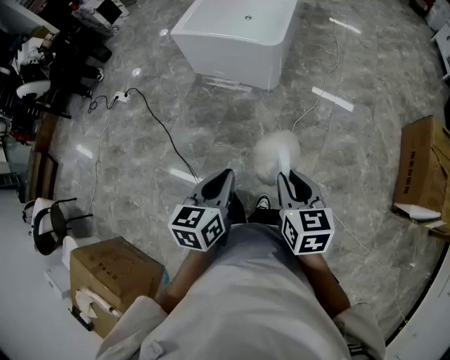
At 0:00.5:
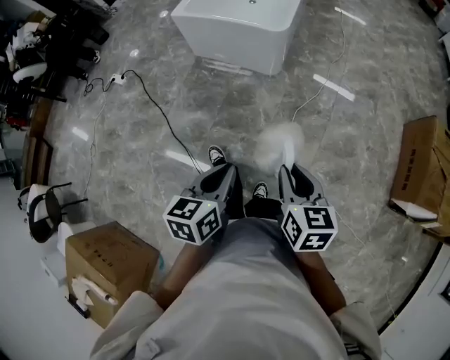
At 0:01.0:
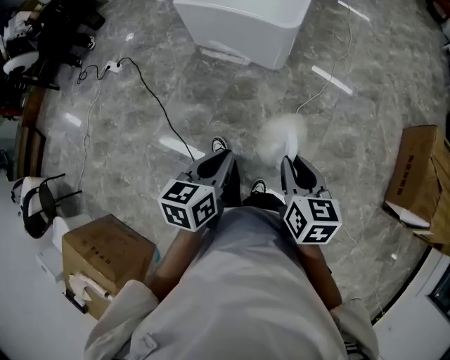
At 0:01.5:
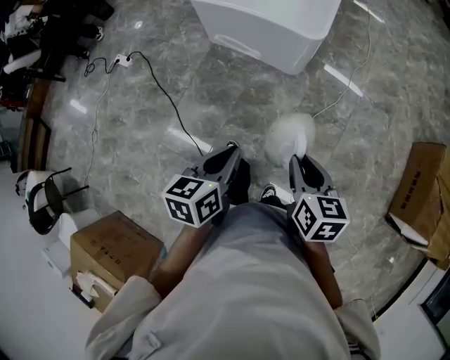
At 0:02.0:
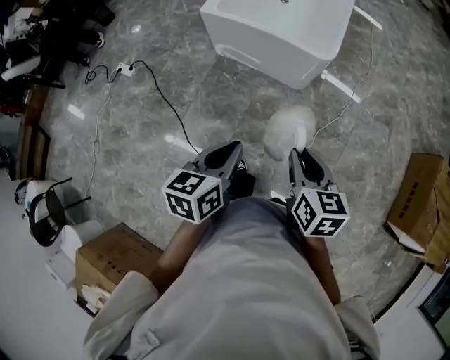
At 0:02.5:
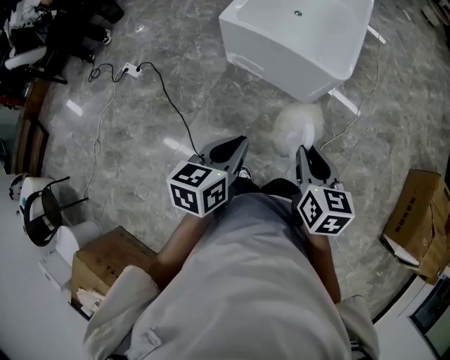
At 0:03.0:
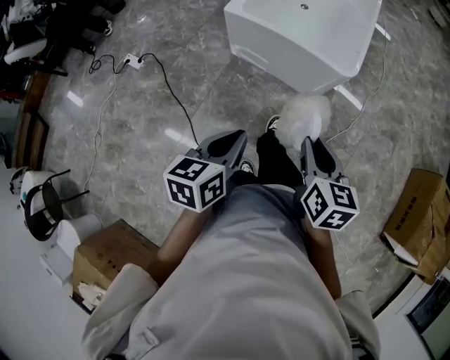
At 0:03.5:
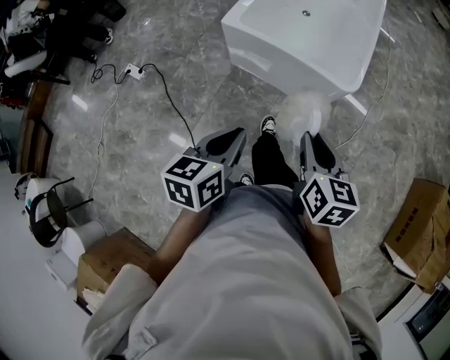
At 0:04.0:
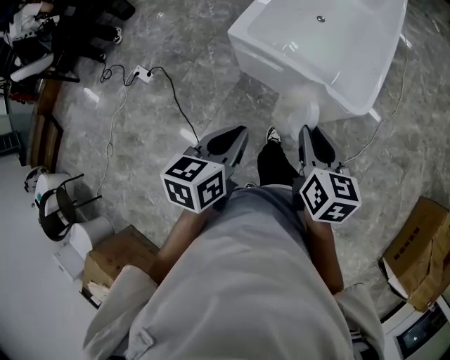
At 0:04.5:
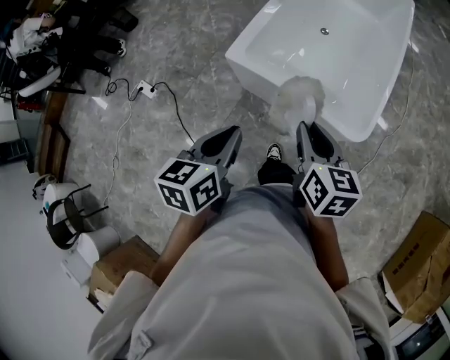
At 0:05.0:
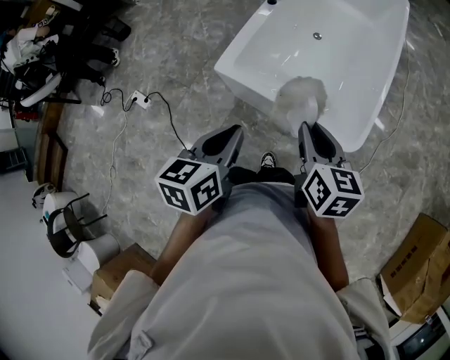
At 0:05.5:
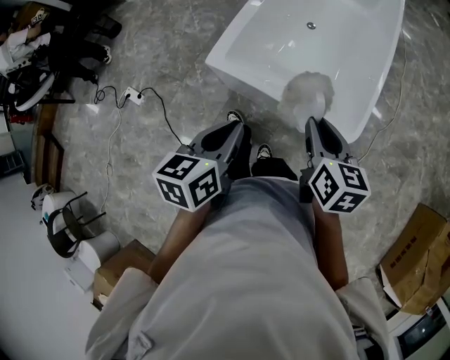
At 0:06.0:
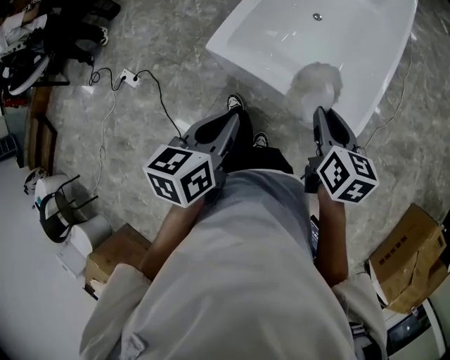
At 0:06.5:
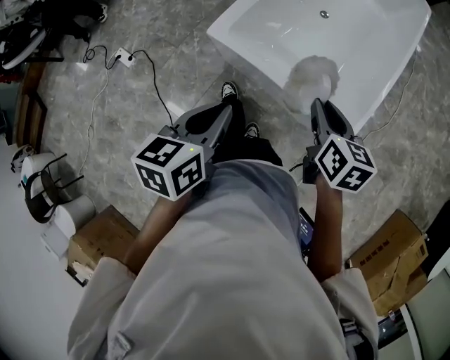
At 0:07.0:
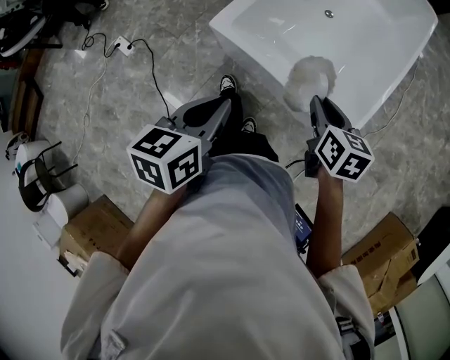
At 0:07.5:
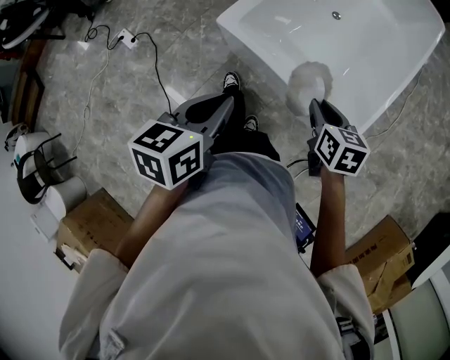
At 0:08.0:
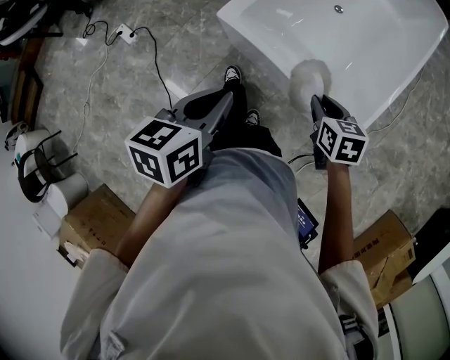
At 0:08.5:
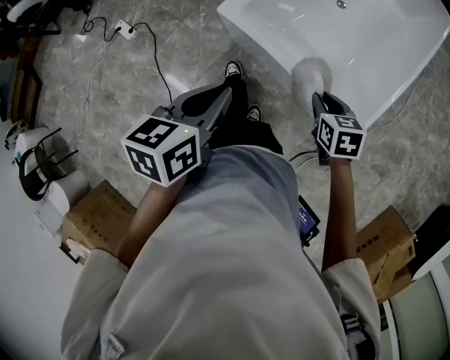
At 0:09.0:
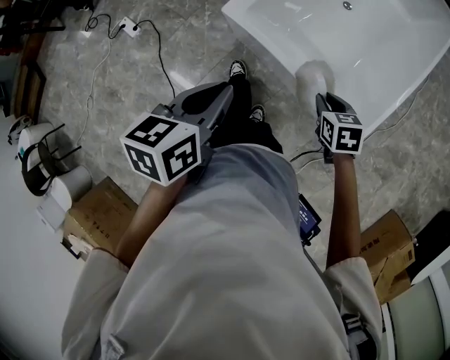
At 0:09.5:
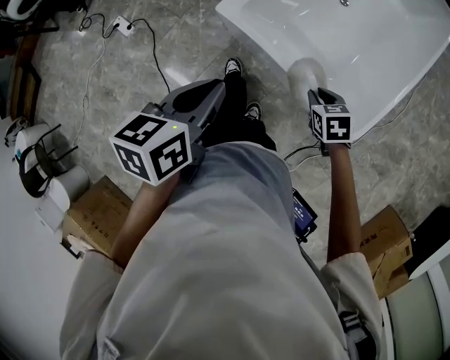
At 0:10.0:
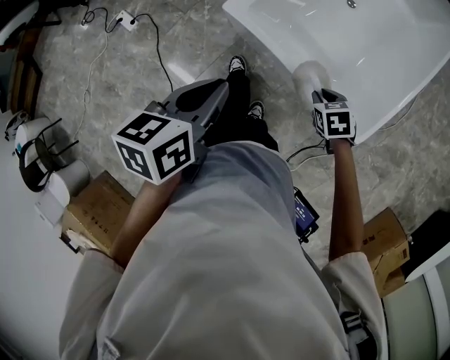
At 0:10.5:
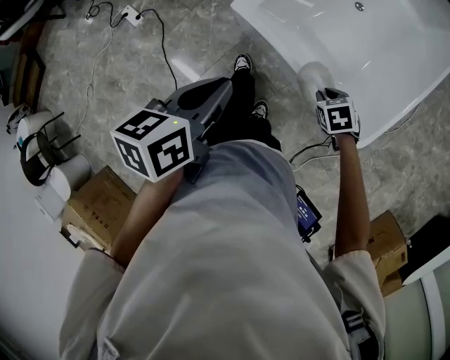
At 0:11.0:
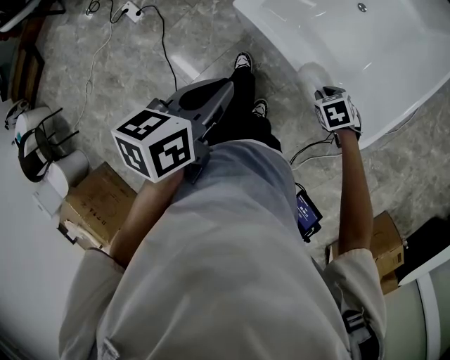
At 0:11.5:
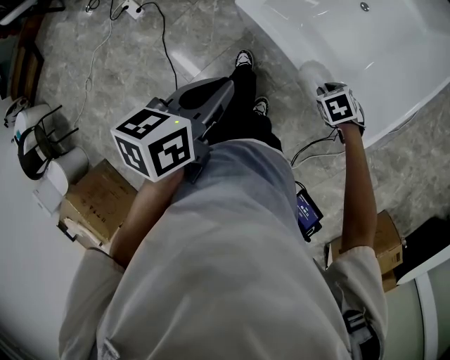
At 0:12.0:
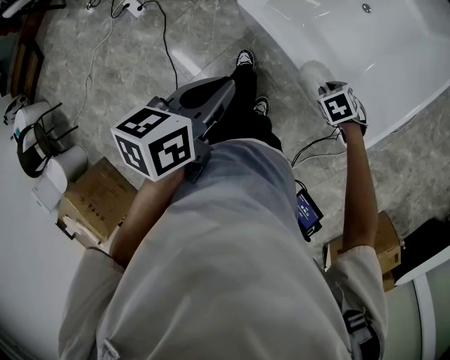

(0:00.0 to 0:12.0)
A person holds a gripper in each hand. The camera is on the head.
0:00.0 - 0:02.0: The grippers both shift forward and to the left by roughly 30 cm.
0:02.0 - 0:04.0: The right gripper goes roughly 30 cm forward, while the left gripper goes roughly 25 cm forward and to the left.
0:04.0 - 0:06.0: The two grippers go approximately 20 cm forward.
0:06.0 - 0:08.0: The right gripper moves downward, some 15 cm, and changes its angle by roughly 30 degrees.
0:08.0 - 0:10.0: The left gripper shifts by approximately 5 cm; the right gripper travels downward by some 10 cm, and swivels approximately 20 degrees.
0:10.0 - 0:12.0: The right gripper swivels roughly 20 degrees.

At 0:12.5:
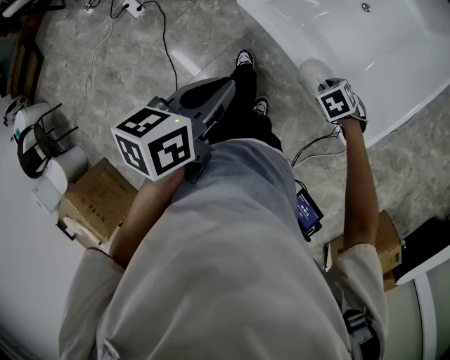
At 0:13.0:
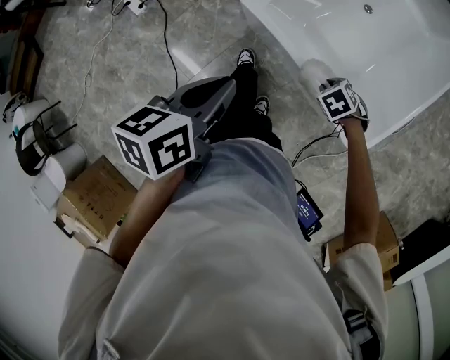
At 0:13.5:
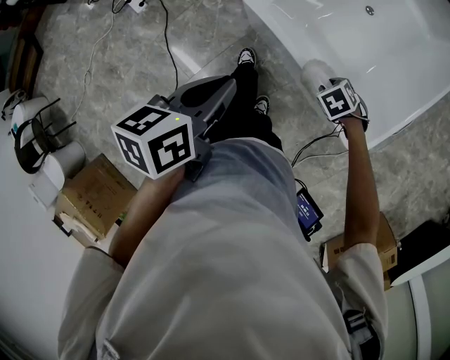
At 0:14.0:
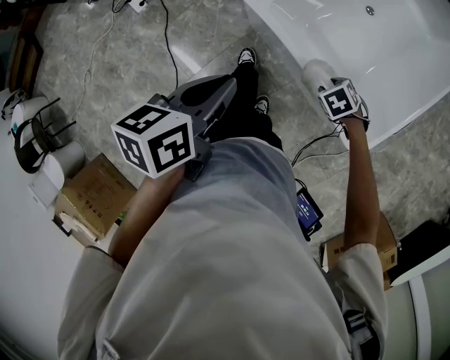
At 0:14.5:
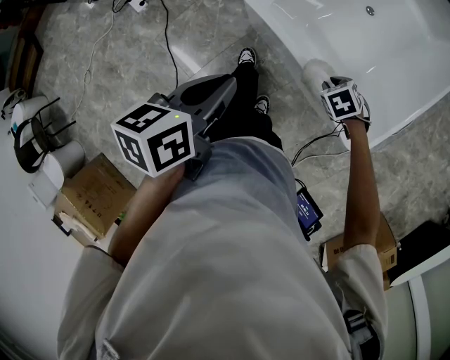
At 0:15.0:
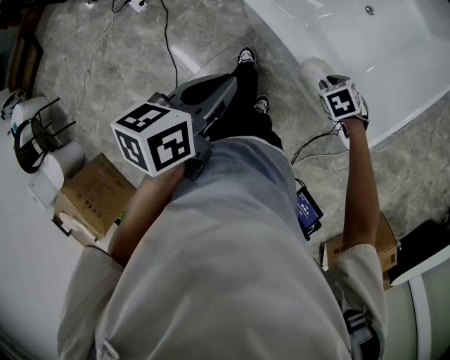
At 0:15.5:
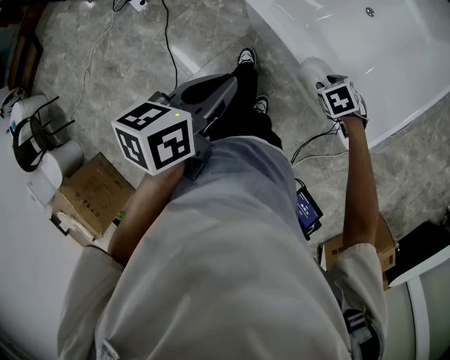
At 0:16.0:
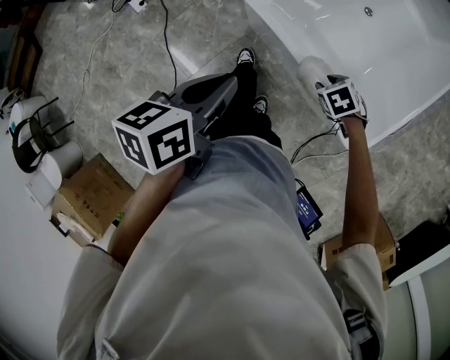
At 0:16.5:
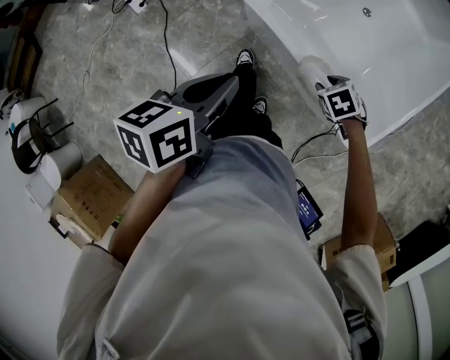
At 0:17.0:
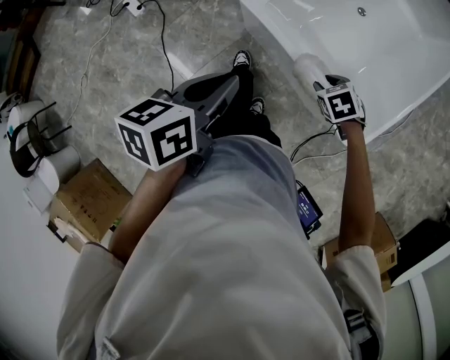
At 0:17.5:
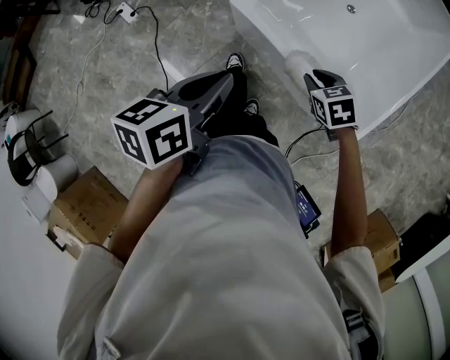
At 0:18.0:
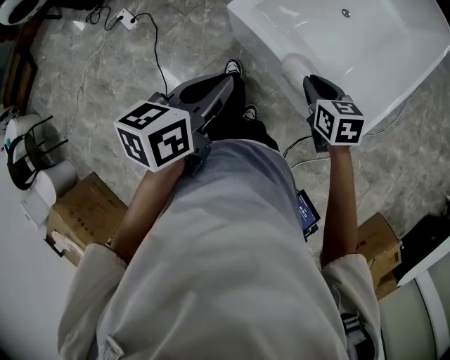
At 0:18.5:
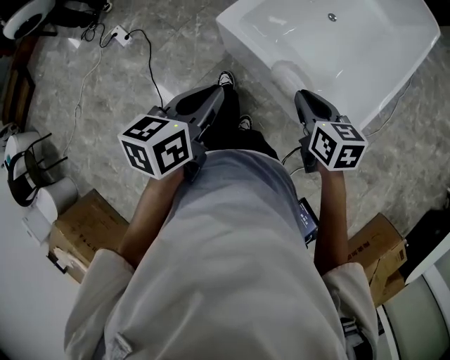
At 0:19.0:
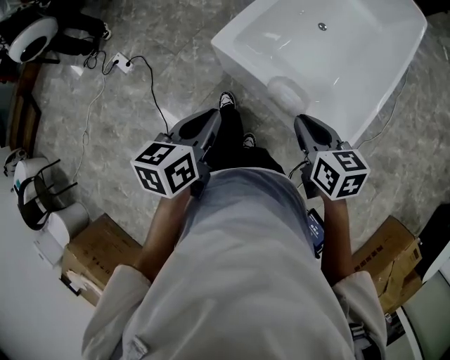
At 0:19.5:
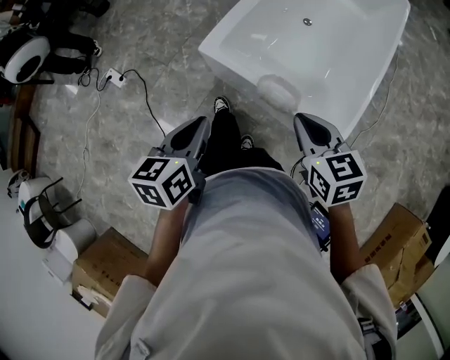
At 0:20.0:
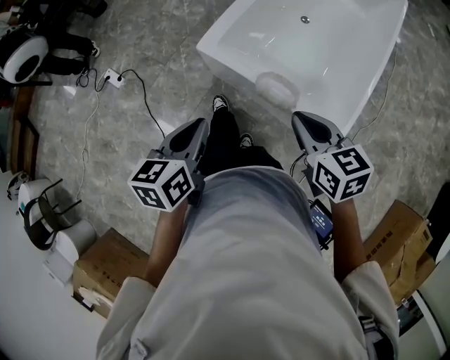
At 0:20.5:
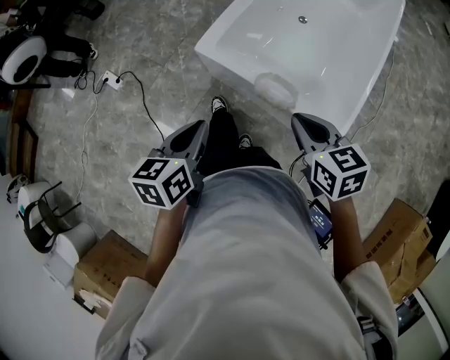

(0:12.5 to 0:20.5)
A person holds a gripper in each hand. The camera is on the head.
0:12.5 - 0:14.5: Both grippers stay about where they are.
0:14.5 - 0:16.5: There are only small adjustments of the grippers.
0:16.5 - 0:18.5: The right gripper goes some 20 cm upward, angles its fingers upward, by approximately 40 degrees, and closes up.
0:18.5 - 0:20.5: The right gripper heads upward, covering approximately 5 cm.

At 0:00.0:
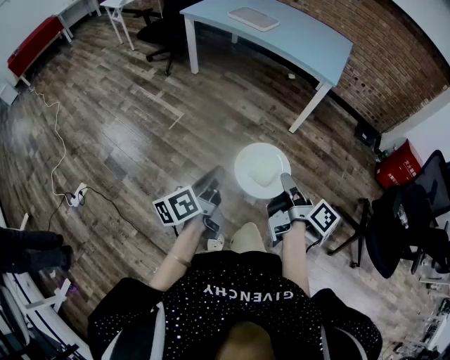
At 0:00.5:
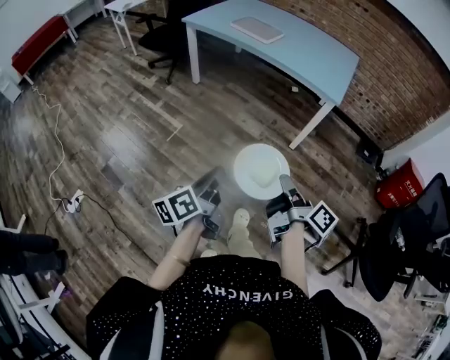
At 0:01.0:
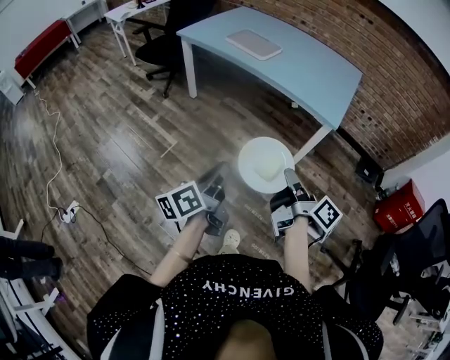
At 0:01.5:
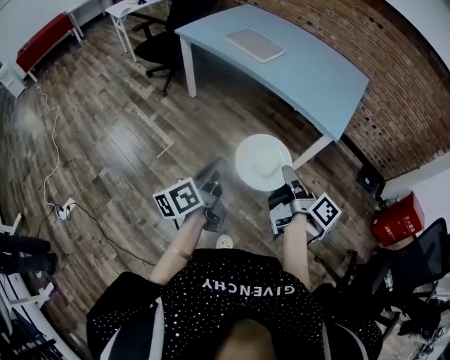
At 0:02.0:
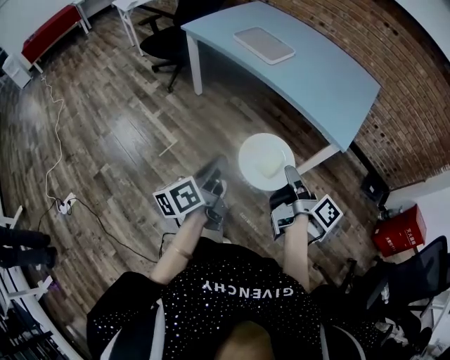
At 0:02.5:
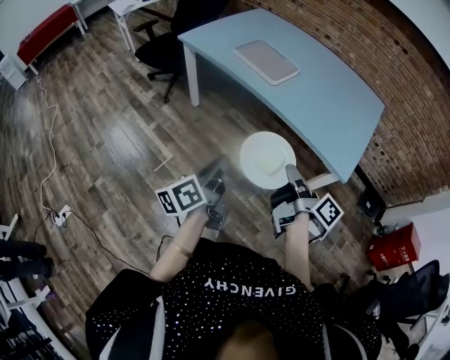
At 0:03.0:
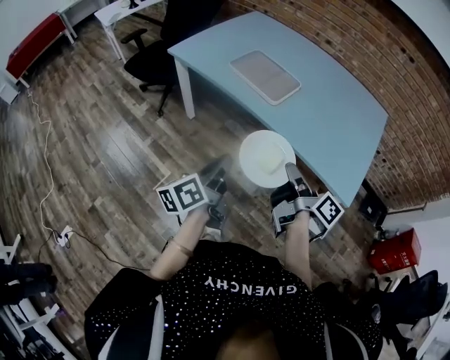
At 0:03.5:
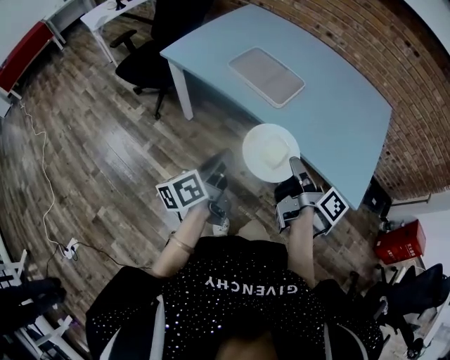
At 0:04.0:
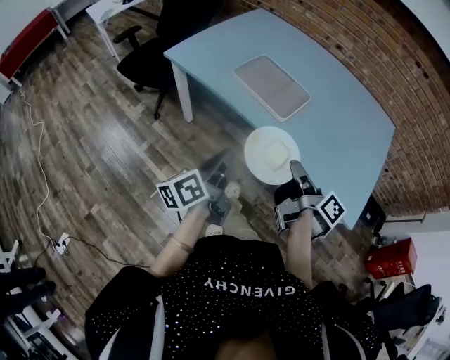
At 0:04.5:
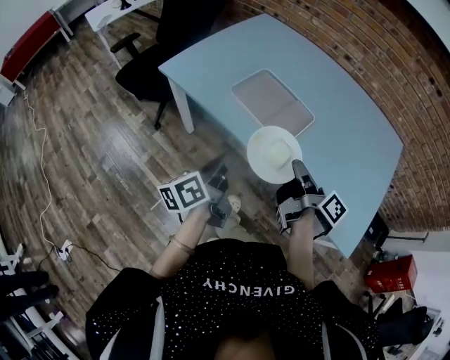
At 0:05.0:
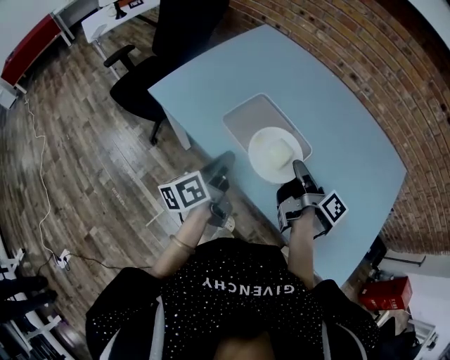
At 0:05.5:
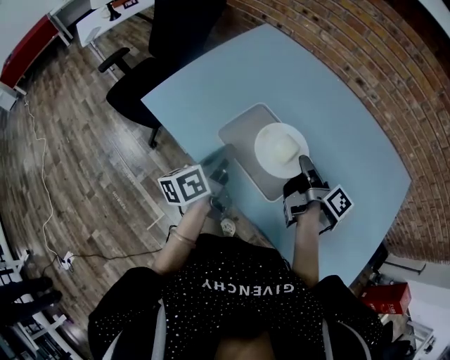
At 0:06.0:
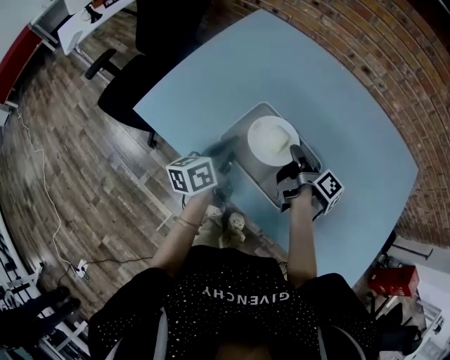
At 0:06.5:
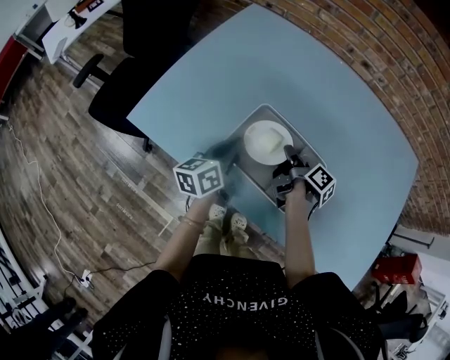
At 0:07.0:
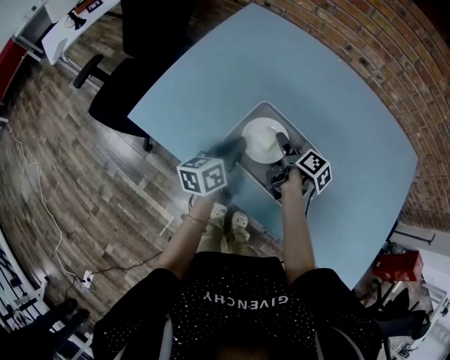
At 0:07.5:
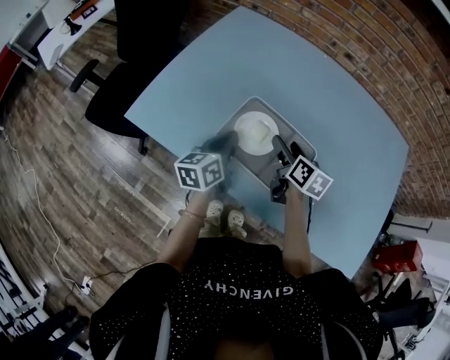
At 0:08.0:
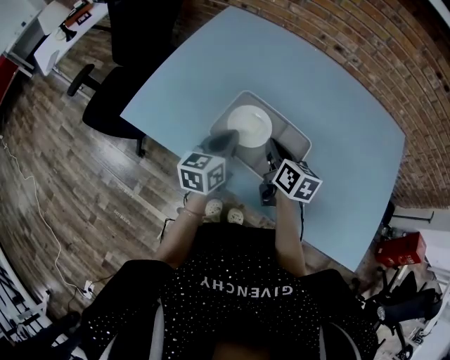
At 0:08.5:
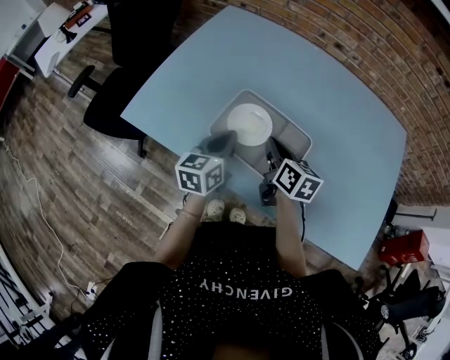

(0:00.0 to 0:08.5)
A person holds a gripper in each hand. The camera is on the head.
0:00.0 - 0:02.0: The left gripper moves approximately 40 cm.
0:02.0 - 0:04.0: The left gripper changes place by roughly 40 cm.
0:04.0 - 0:06.5: The left gripper changes place by approximately 50 cm, and turns by approximately 20 degrees.
0:06.5 - 0:08.5: The left gripper ends up approximately 5 cm from where it was.
